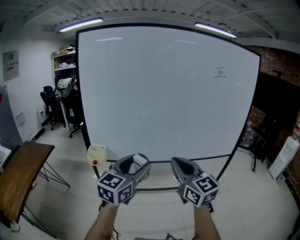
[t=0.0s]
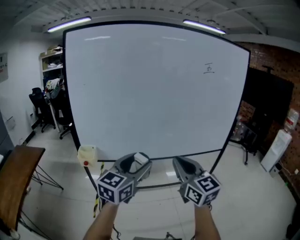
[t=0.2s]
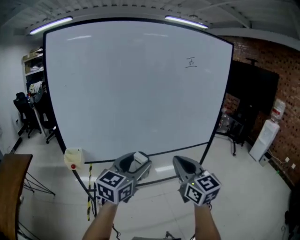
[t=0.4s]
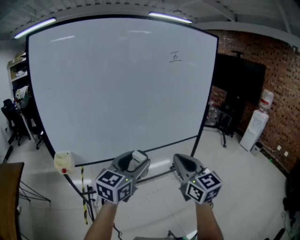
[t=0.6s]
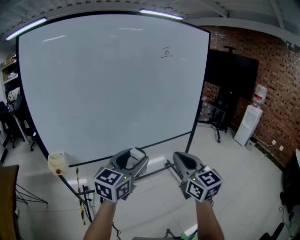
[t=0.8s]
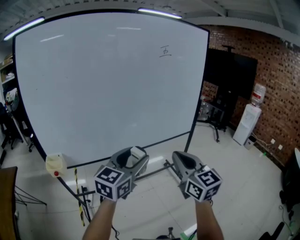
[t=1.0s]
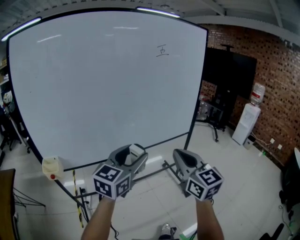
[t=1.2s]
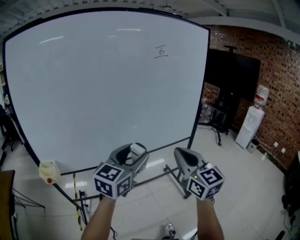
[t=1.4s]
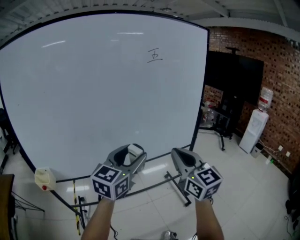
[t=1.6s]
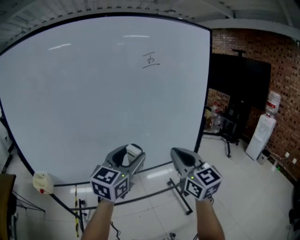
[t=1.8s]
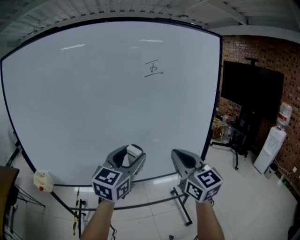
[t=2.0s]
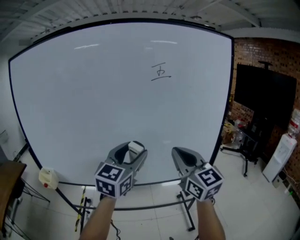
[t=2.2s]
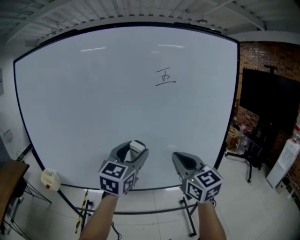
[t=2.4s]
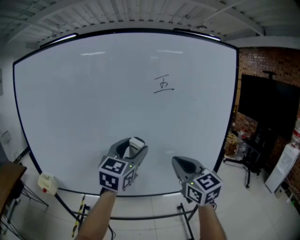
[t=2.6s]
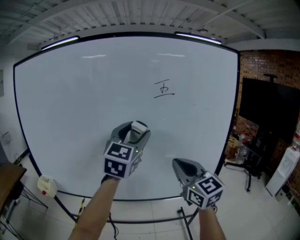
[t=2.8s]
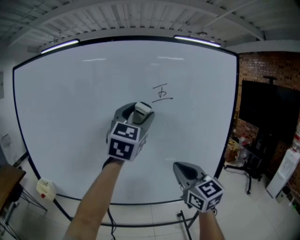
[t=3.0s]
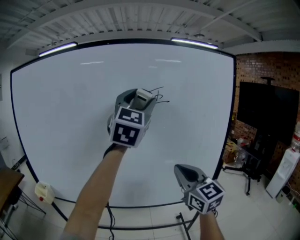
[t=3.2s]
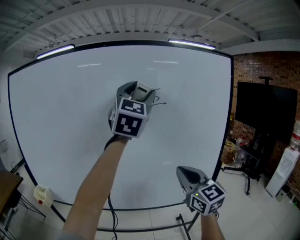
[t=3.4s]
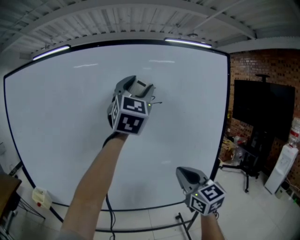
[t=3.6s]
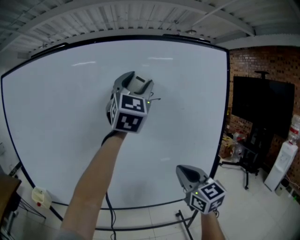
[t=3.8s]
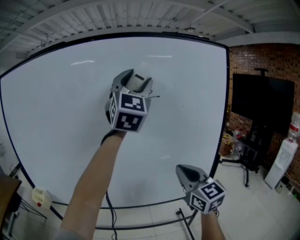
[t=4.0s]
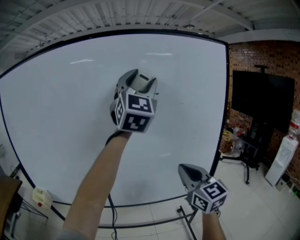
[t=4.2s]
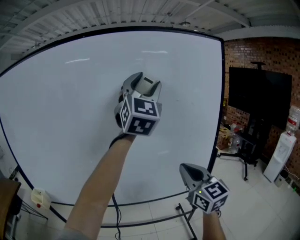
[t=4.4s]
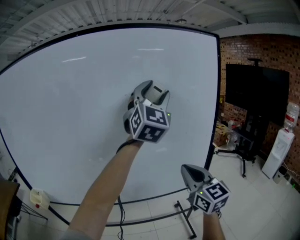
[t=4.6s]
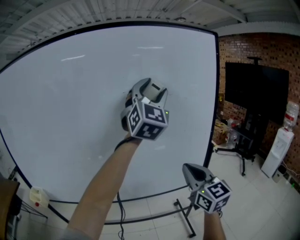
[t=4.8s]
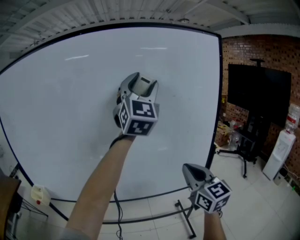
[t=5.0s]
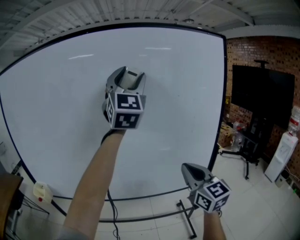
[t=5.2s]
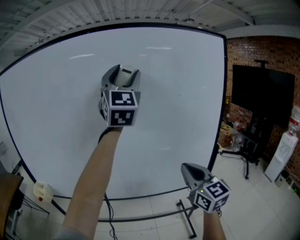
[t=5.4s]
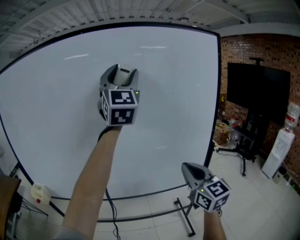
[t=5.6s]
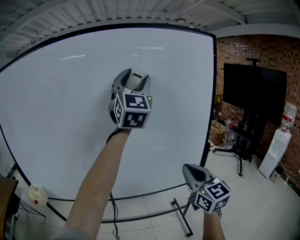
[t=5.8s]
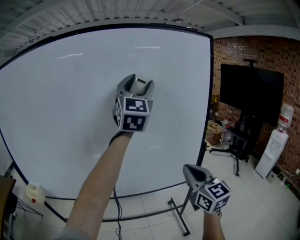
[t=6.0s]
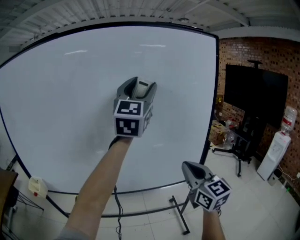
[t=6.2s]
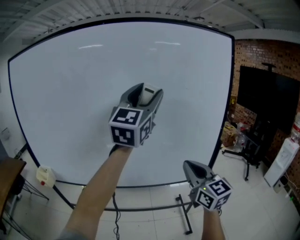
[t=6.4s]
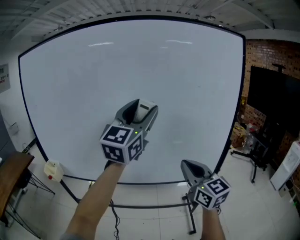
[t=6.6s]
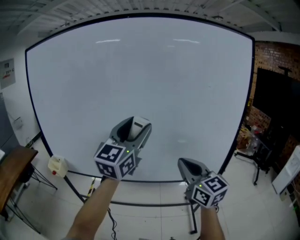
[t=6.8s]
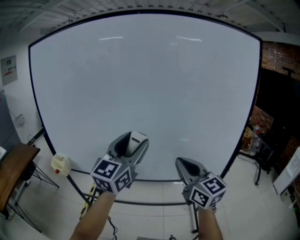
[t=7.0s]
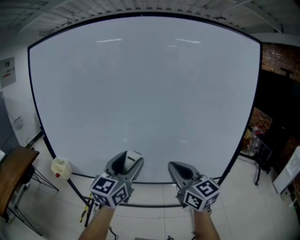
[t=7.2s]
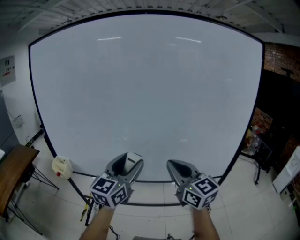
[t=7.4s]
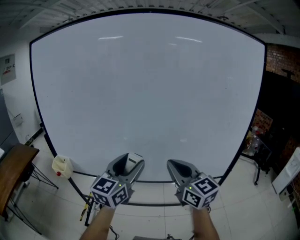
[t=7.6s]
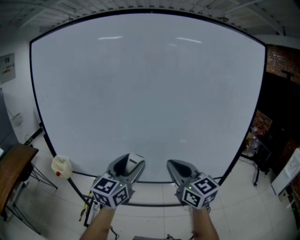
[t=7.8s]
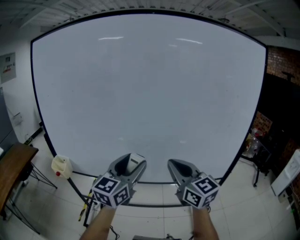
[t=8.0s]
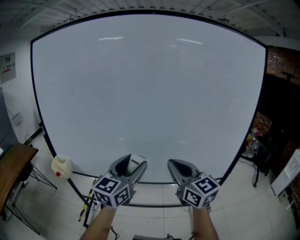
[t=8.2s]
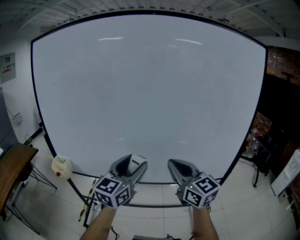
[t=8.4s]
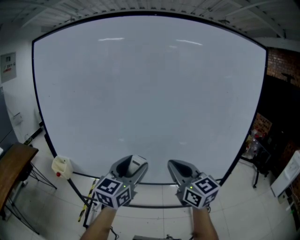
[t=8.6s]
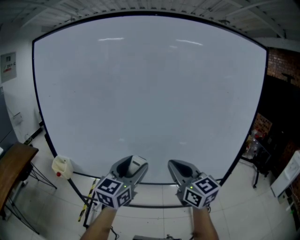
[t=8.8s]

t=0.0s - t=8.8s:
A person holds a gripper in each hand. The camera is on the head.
t=0.0s - t=1.4s: Both grippers travel together to the right and forward, approximately 20 cm. The right gripper turns by approximately 20 degrees.
t=1.4s - t=3.0s: The left gripper heads upward, covering roughly 25 cm, and rotates roughly 40 degrees. The right gripper changes place by roughly 25 cm, and rotates some 20 degrees.
t=3.0s - t=4.4s: The left gripper is displaced to the right and upward by roughly 10 cm, while the right gripper is displaced to the right by about 5 cm.
t=4.4s - t=5.8s: The left gripper swings left and right, approximately 15 cm each way, with 2 reversals. The right gripper shifts by about 5 cm.
t=5.8s - t=7.4s: The right gripper shifts some 20 cm to the left, and swivels about 20 degrees; the left gripper goes some 40 cm downward and to the left, and turns by approximately 40 degrees.
t=7.4s - t=8.8s: There are only small adjustments of the grippers.

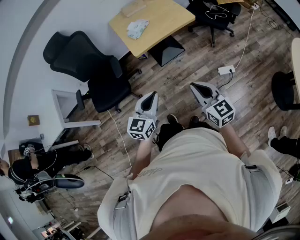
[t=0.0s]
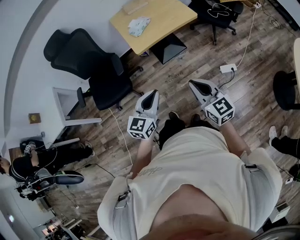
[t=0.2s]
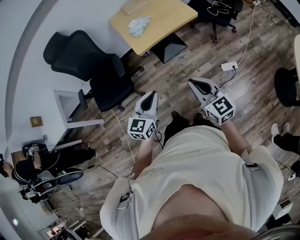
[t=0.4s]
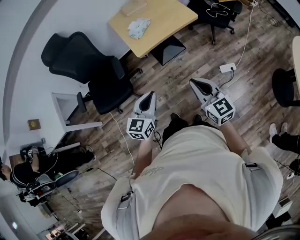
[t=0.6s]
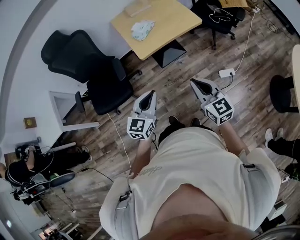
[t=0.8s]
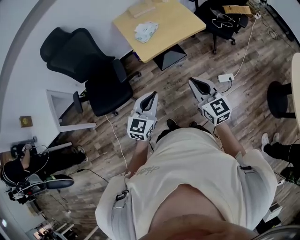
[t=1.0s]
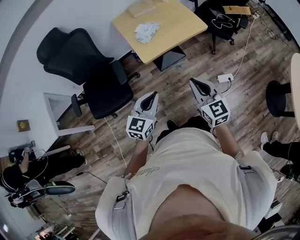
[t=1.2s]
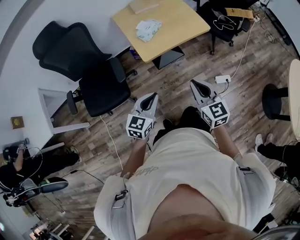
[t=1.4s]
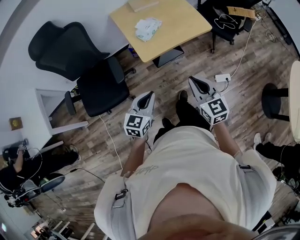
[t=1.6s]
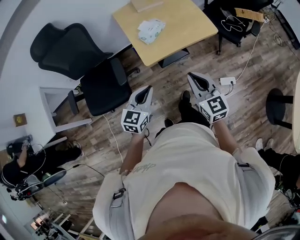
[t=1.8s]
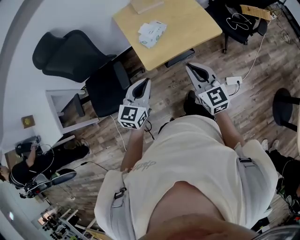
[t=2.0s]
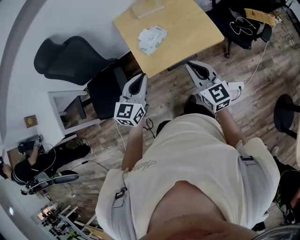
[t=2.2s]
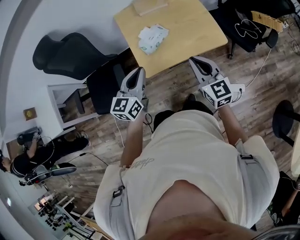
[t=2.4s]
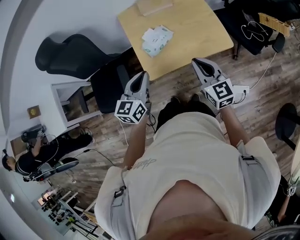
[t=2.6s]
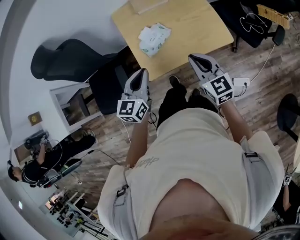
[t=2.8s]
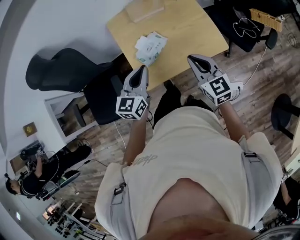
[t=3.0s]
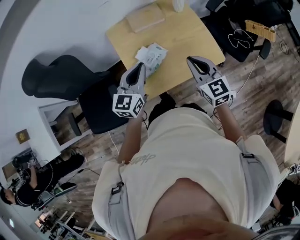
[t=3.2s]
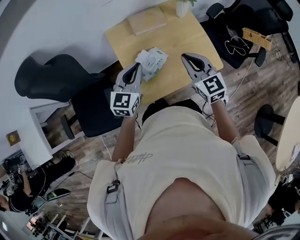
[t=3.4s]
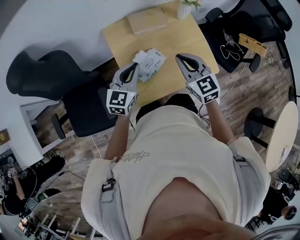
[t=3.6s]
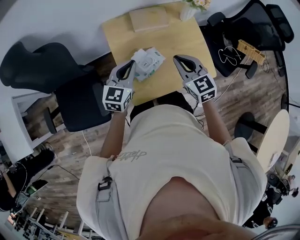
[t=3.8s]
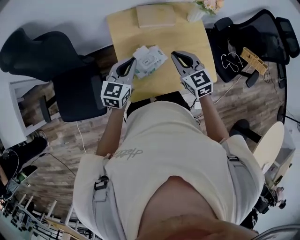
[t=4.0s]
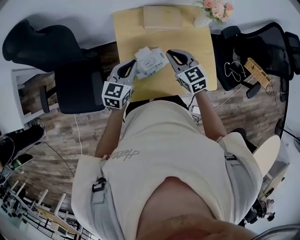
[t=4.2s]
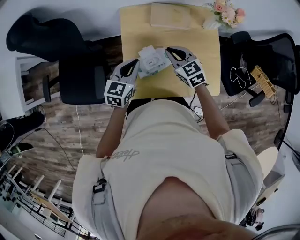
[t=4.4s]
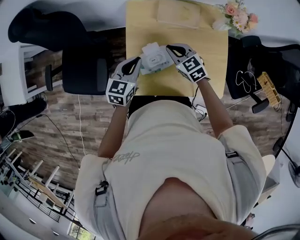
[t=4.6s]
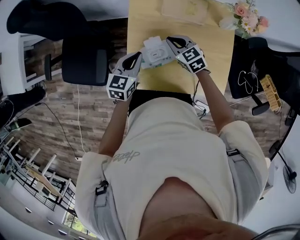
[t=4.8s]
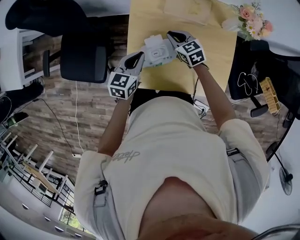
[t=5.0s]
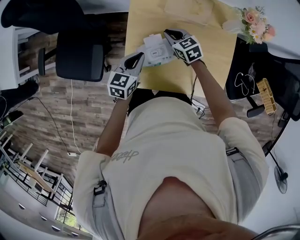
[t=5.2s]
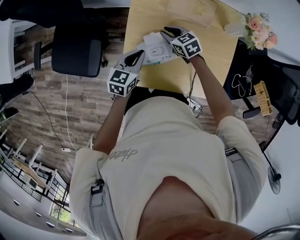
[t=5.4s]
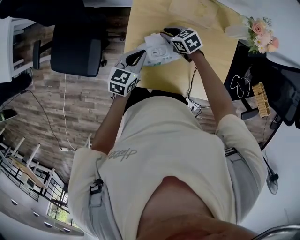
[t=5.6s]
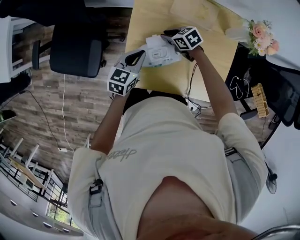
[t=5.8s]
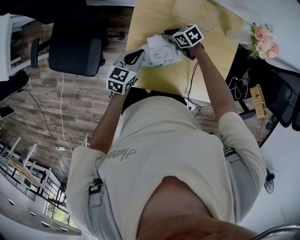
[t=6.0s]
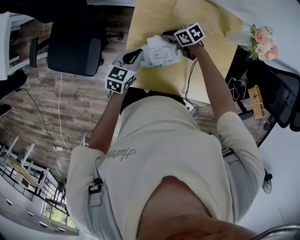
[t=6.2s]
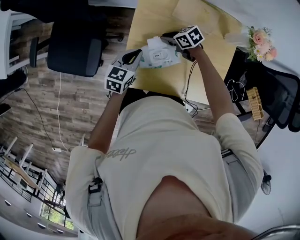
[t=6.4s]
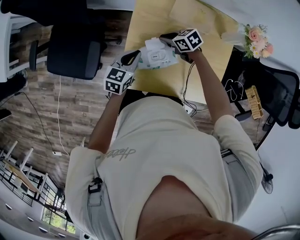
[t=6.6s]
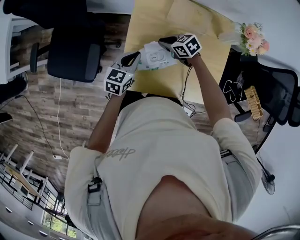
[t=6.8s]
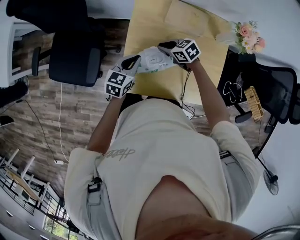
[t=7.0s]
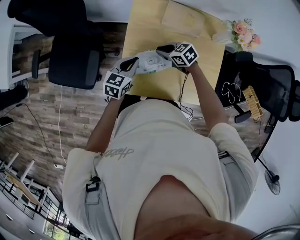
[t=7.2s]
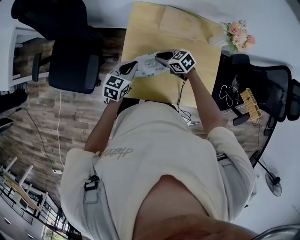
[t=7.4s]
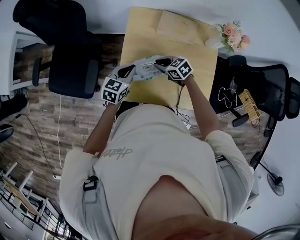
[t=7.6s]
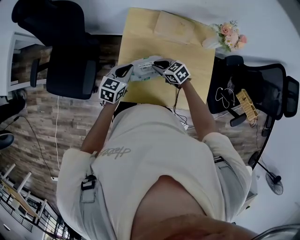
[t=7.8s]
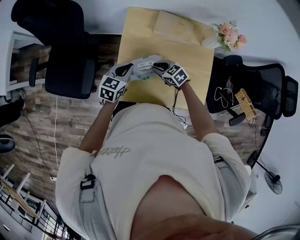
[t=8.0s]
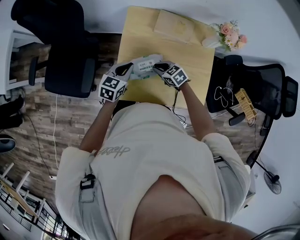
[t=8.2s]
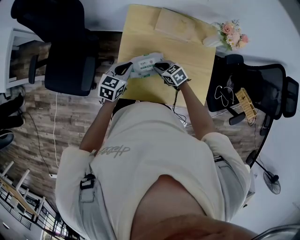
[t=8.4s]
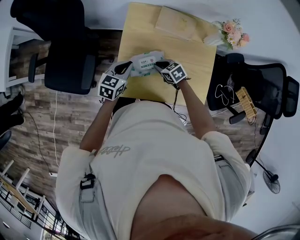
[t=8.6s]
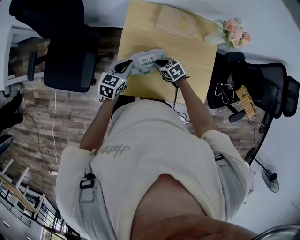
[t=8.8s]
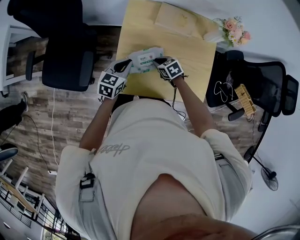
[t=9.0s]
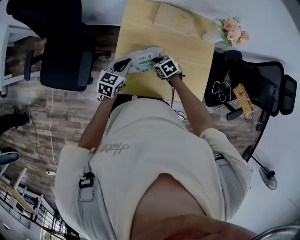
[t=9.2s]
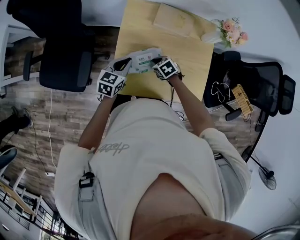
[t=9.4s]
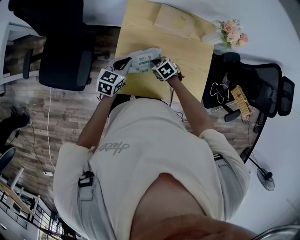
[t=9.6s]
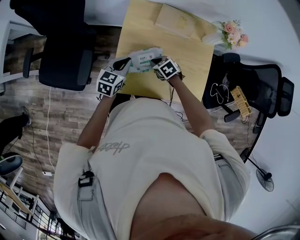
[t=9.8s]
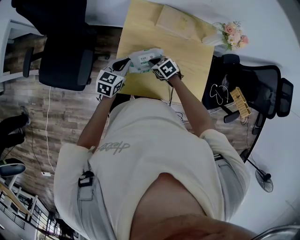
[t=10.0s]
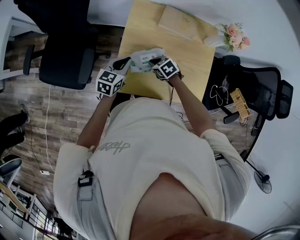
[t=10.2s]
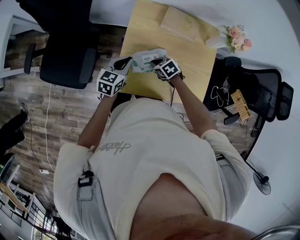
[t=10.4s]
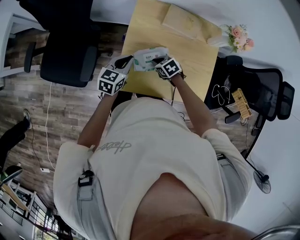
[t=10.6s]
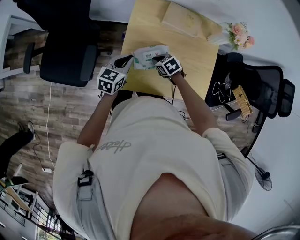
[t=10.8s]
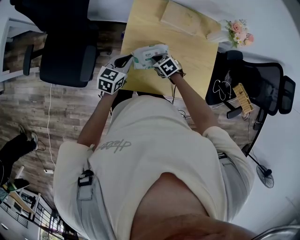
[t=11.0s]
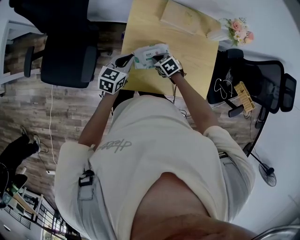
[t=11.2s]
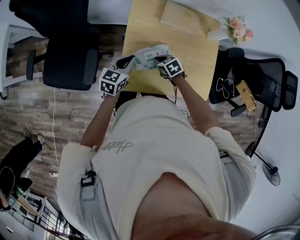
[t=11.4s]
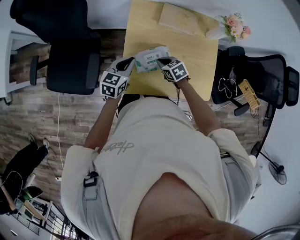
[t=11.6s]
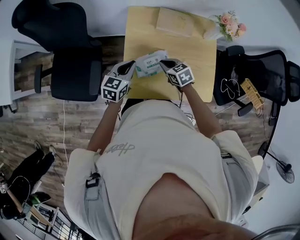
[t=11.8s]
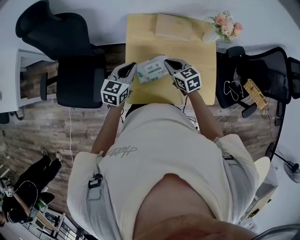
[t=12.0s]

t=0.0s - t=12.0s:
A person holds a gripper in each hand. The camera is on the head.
t=0.0s - t=1.6s: Both grippers move forward and to the left, some 20 cm.
t=1.6s - t=3.0s: The grippers both shift forward by roughly 35 cm.
t=3.0s - t=4.4s: The left gripper shifts about 15 cm forward, downward and to the left. Meanwhile the right gripper heads forward and to the left, covering approximately 25 cm, and changes its angle by roughly 30 degrees.
t=4.4s - t=6.0s: The left gripper moves downward, roughly 10 cm; the right gripper heads downward, covering some 20 cm, and rotates some 40 degrees.
t=6.0s - t=7.6s: The right gripper ends up some 10 cm from where it was.
t=7.6s - t=9.0s: The right gripper shifts roughly 5 cm downward.
t=9.0s - t=10.4s: The grippers move only a little.
t=10.4s - t=12.0s: The left gripper heads upward, covering some 5 cm; the right gripper travels upward by approximately 15 cm, and swivels approximately 30 degrees.

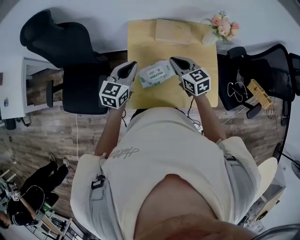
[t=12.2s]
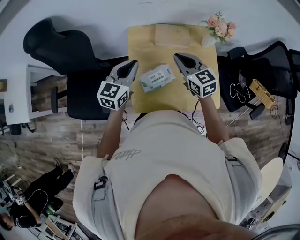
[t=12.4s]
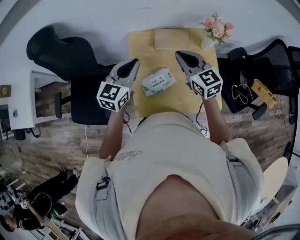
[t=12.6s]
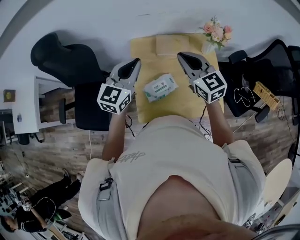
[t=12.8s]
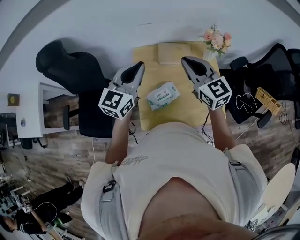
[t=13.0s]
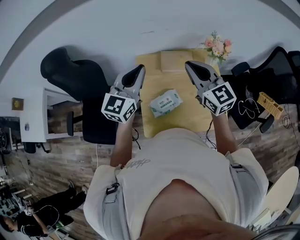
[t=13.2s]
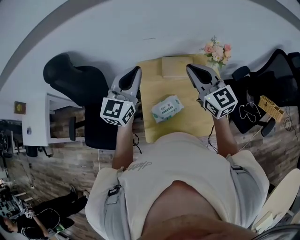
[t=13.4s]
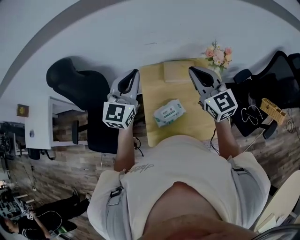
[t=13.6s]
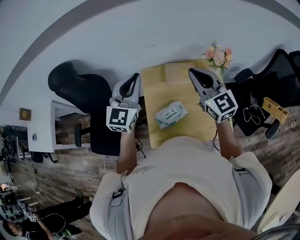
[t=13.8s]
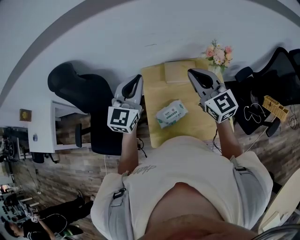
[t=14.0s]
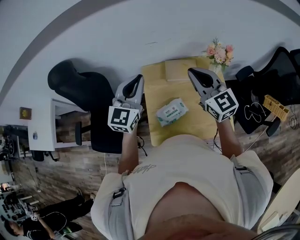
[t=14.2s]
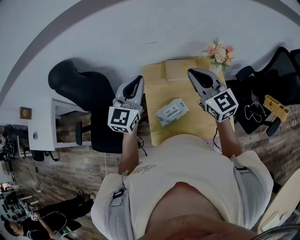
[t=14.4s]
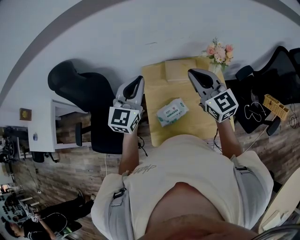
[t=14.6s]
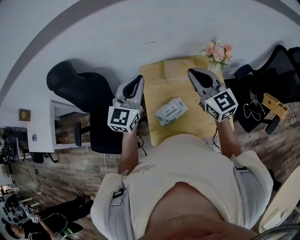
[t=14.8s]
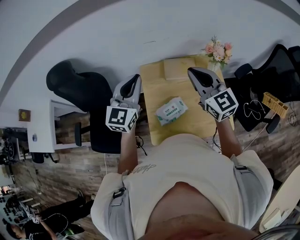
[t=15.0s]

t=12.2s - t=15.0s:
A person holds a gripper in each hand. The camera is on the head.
t=12.2s - t=13.6s: The grippers both shift upward by approximately 20 cm. The left gripper turns by roughly 30 degrees. Meanwhile the right gripper rotates some 30 degrees.
t=13.6s - t=15.0s: The grippers make only small movements.
